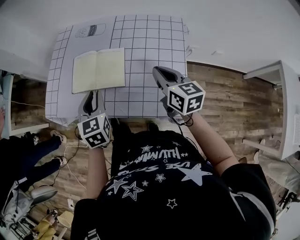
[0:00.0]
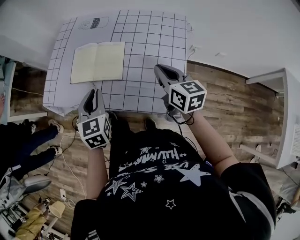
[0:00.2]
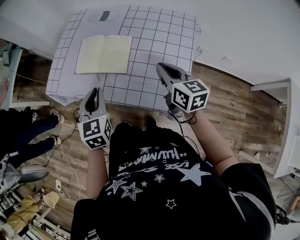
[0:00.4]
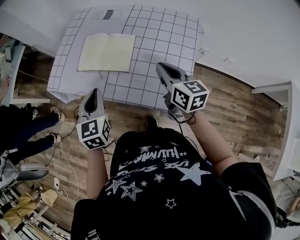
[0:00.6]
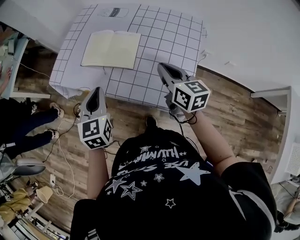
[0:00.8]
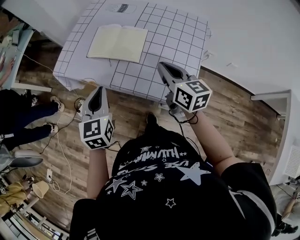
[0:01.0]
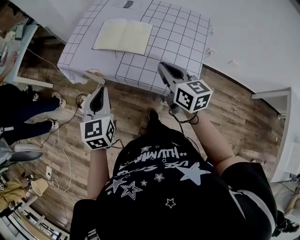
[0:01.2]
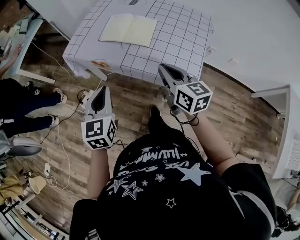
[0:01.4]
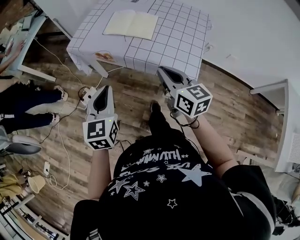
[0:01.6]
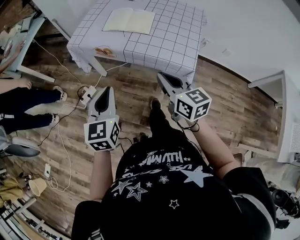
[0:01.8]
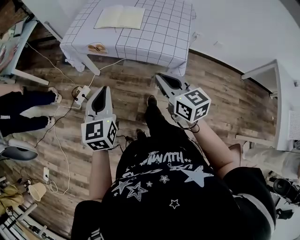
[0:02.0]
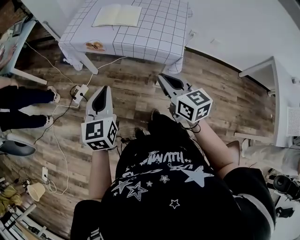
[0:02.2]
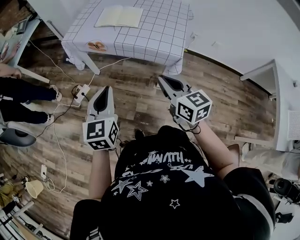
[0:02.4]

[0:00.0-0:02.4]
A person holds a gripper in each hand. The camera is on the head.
0.0 to 1.2 s: The right gripper goes roughly 15 cm to the left and backward. Meanwhile the left gripper heads backward and to the left, covering some 20 cm, and closes.
1.2 to 2.4 s: Both grippers move backward, about 25 cm.

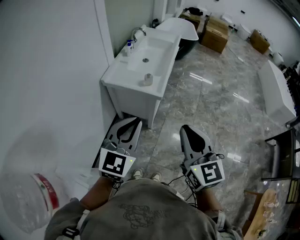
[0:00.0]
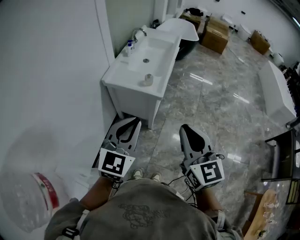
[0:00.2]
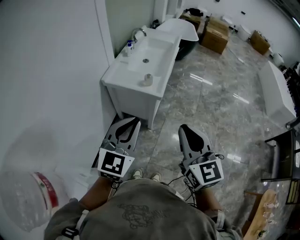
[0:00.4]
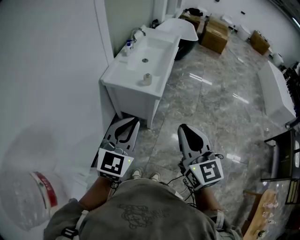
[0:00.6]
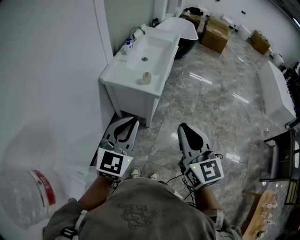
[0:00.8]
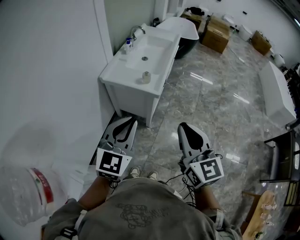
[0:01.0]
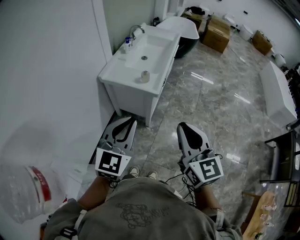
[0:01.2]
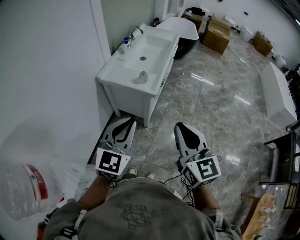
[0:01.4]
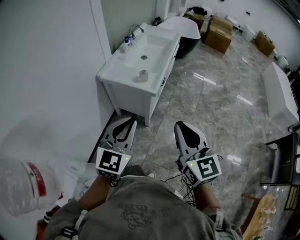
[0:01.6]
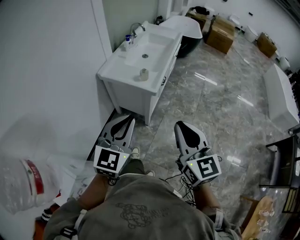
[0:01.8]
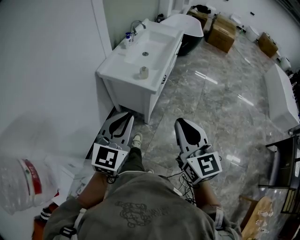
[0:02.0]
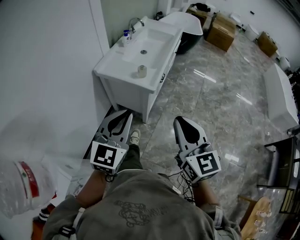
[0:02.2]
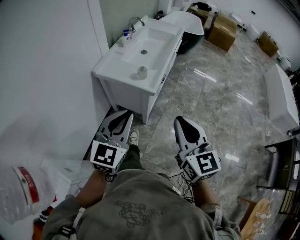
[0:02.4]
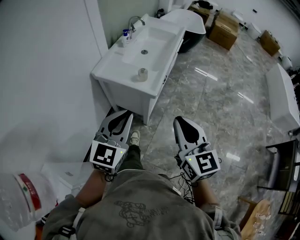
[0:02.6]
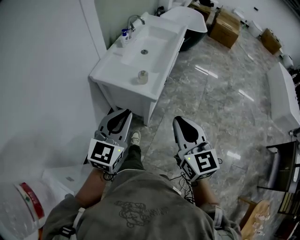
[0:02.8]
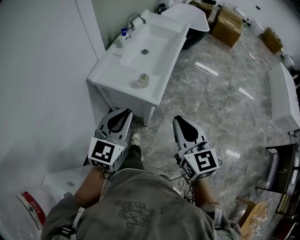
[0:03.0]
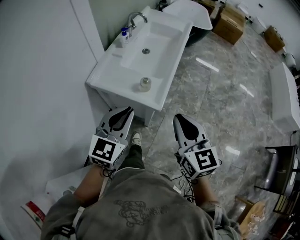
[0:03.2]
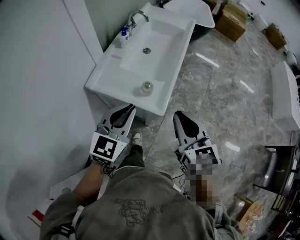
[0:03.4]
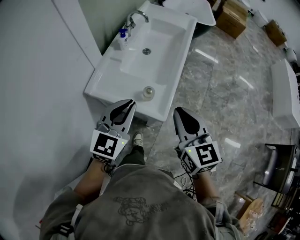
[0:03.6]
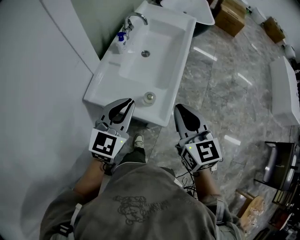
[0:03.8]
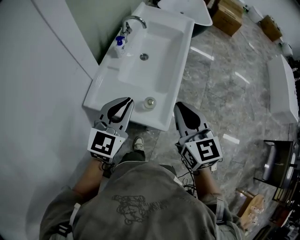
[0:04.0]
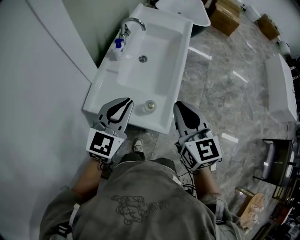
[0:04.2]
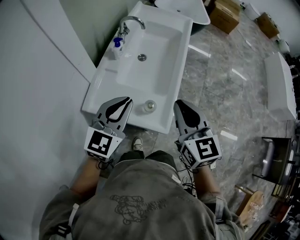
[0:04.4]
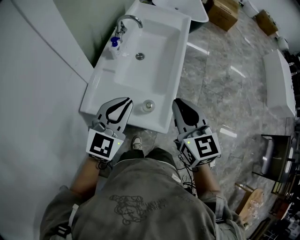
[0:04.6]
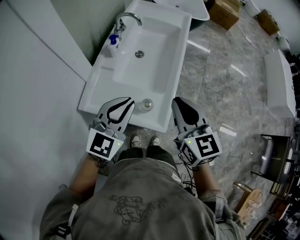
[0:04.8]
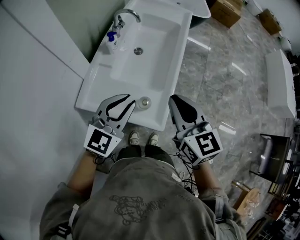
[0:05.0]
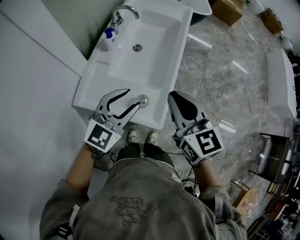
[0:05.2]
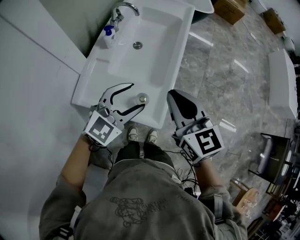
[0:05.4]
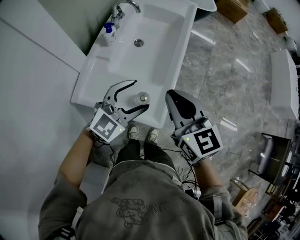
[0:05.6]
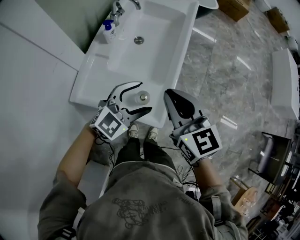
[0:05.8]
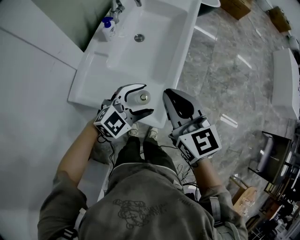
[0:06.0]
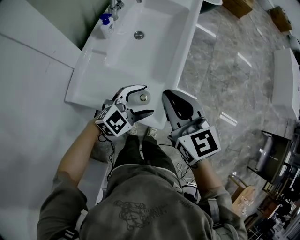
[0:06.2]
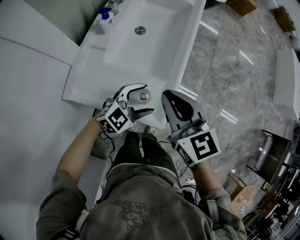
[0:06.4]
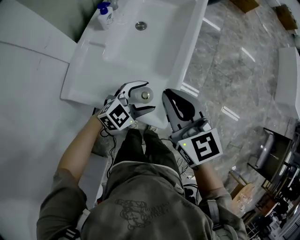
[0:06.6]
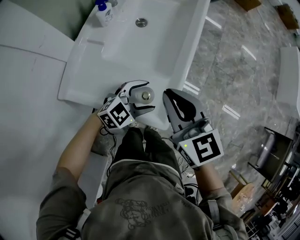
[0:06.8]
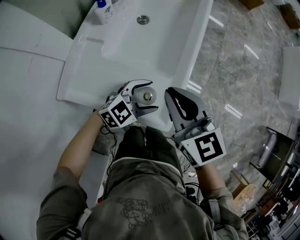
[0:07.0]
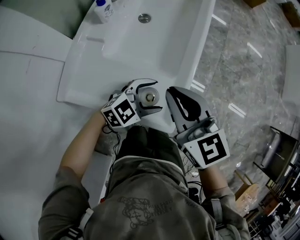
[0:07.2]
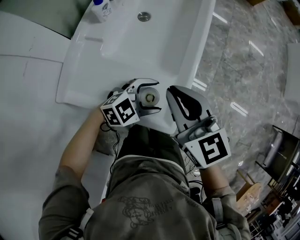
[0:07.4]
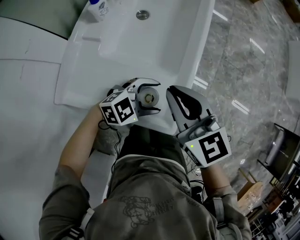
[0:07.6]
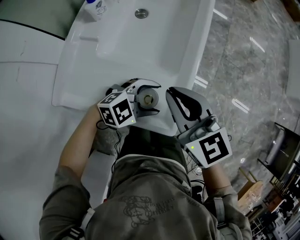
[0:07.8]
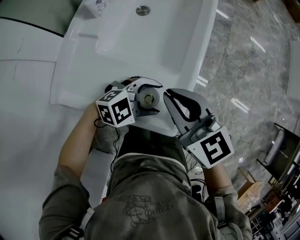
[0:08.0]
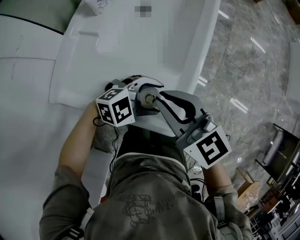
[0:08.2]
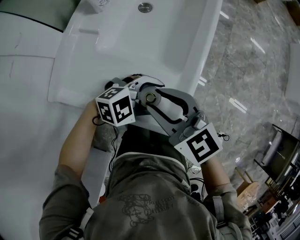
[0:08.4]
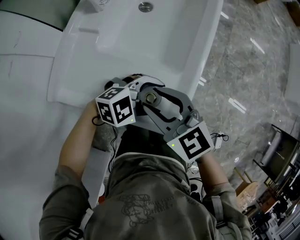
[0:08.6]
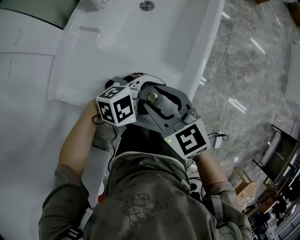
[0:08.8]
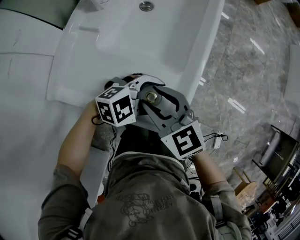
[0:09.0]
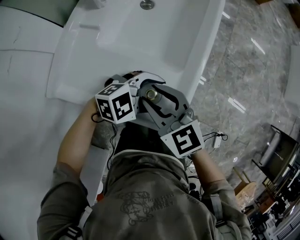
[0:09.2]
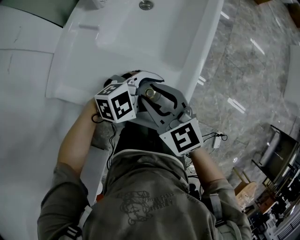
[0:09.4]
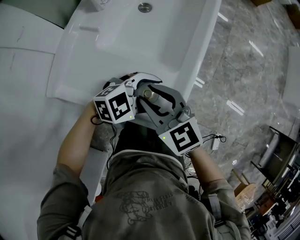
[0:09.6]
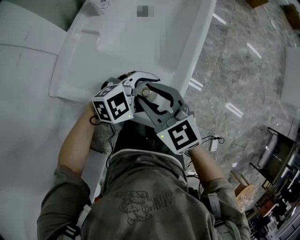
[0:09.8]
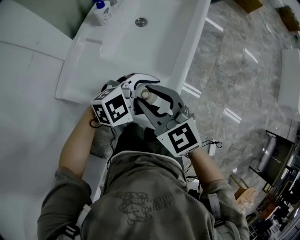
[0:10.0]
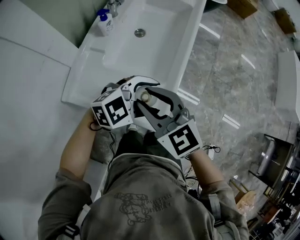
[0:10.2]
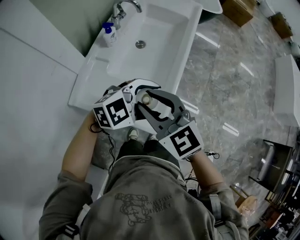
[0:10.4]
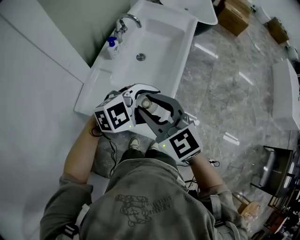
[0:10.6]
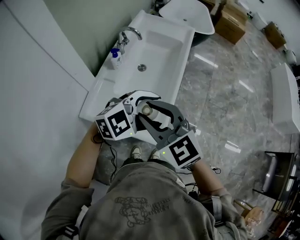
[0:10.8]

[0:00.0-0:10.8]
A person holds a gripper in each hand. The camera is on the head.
0.0 to 1.6 s: The right gripper shifts some 5 cm to the right. The left gripper ends up roughly 5 cm from where it was.
1.6 to 3.0 s: The two grippers go roughly 20 cm forward.
3.0 to 4.6 s: Both grippers move forward, some 25 cm.
4.6 to 6.2 s: The left gripper heads downward and to the right, covering roughly 20 cm, rotates some 30 degrees, and opens up. Meanwhile the right gripper goes about 5 cm downward.
6.2 to 7.8 s: The grippers both shift downward by approximately 10 cm. The left gripper swivels some 20 degrees.
7.8 to 9.2 s: The right gripper moves downward, approximately 10 cm, and opens its fingers.
9.2 to 10.8 s: The grippers both shift upward by approximately 30 cm.

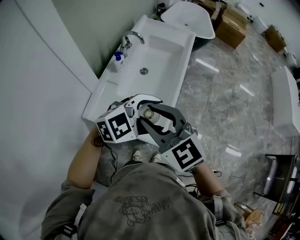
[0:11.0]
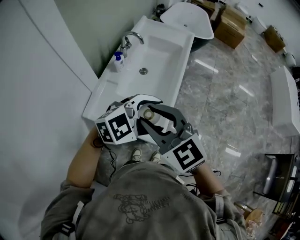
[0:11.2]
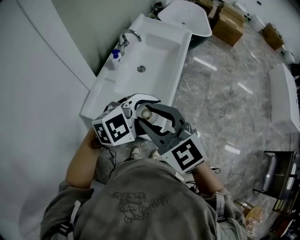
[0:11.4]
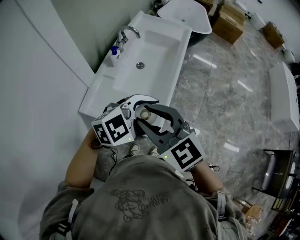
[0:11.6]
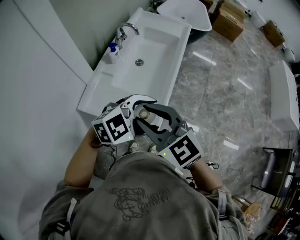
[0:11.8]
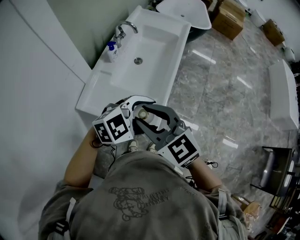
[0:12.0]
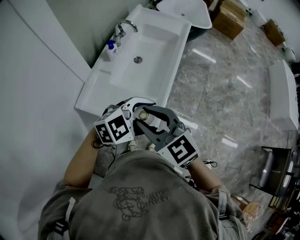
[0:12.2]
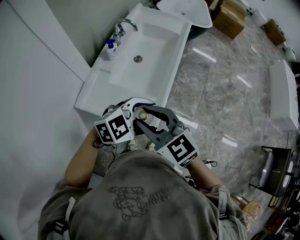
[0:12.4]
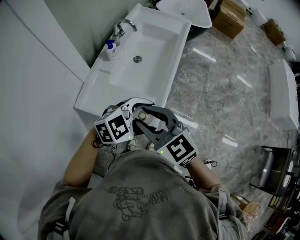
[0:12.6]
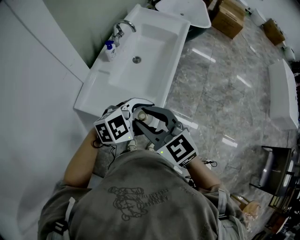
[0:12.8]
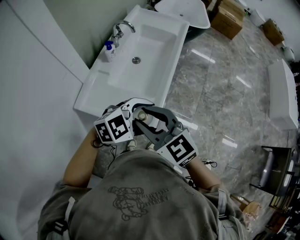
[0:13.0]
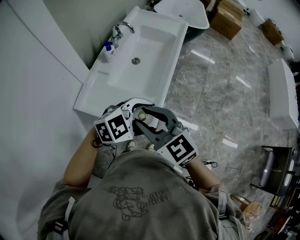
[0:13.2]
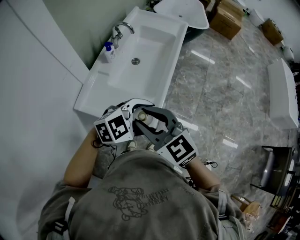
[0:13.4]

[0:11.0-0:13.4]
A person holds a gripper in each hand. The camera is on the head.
11.0 to 12.2 s: The right gripper changes place by some 5 cm; the left gripper ends up about 5 cm from where it was.
12.2 to 13.4 s: The grippers move only a little.

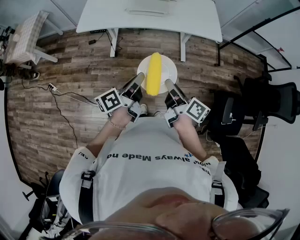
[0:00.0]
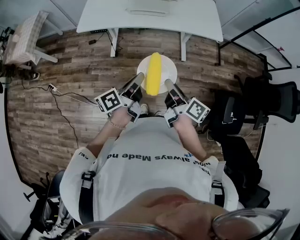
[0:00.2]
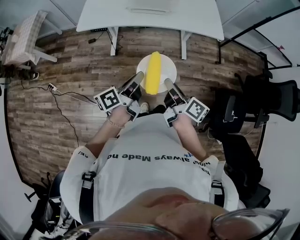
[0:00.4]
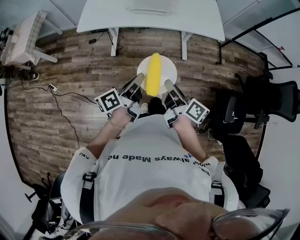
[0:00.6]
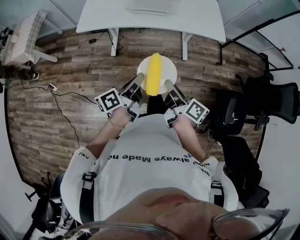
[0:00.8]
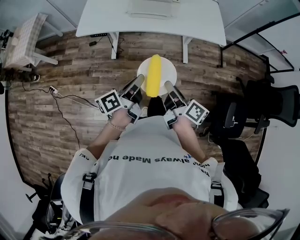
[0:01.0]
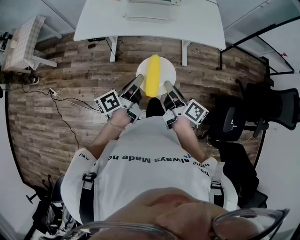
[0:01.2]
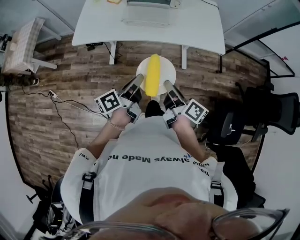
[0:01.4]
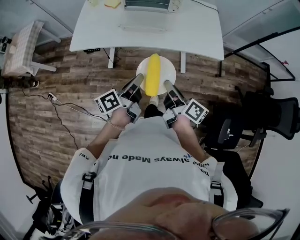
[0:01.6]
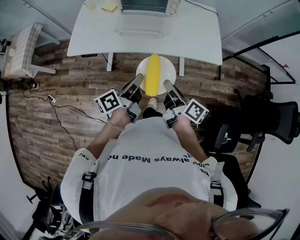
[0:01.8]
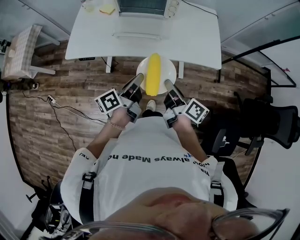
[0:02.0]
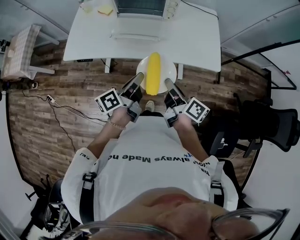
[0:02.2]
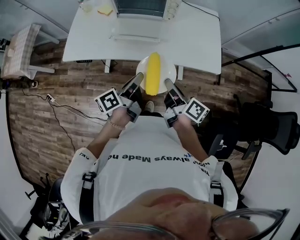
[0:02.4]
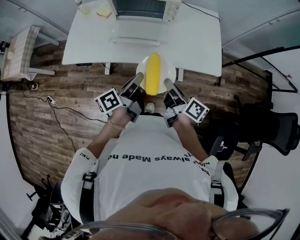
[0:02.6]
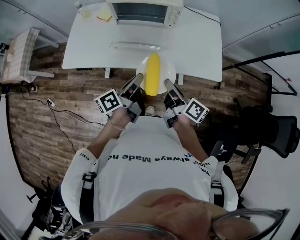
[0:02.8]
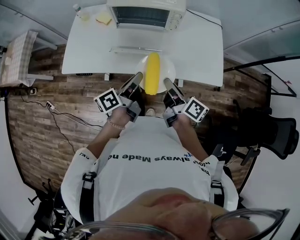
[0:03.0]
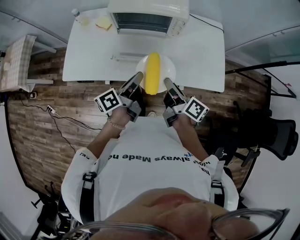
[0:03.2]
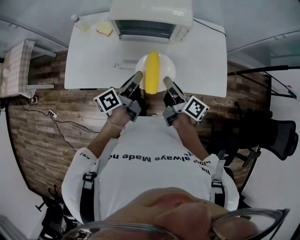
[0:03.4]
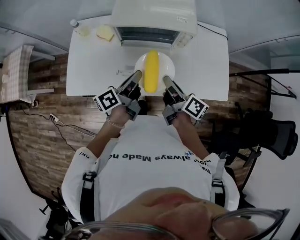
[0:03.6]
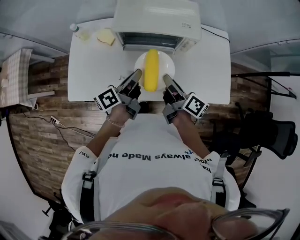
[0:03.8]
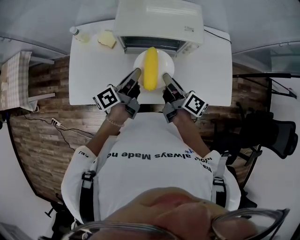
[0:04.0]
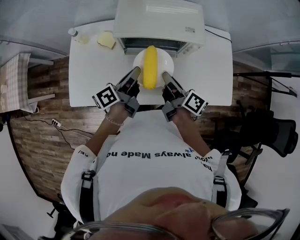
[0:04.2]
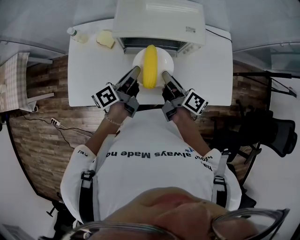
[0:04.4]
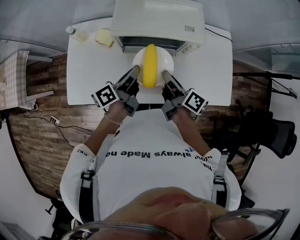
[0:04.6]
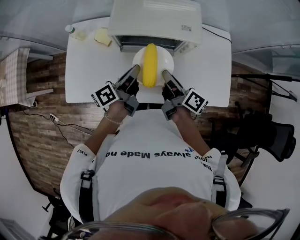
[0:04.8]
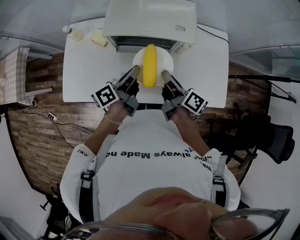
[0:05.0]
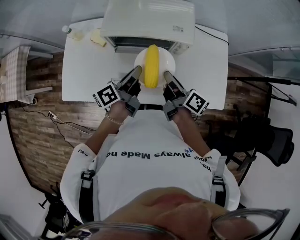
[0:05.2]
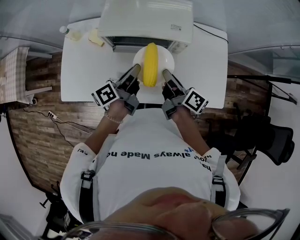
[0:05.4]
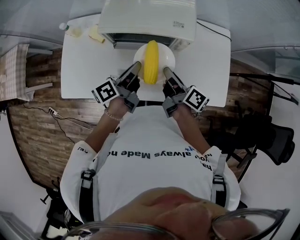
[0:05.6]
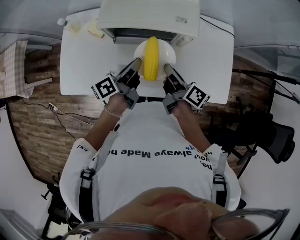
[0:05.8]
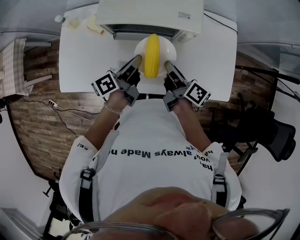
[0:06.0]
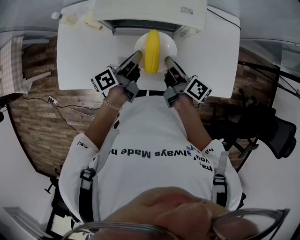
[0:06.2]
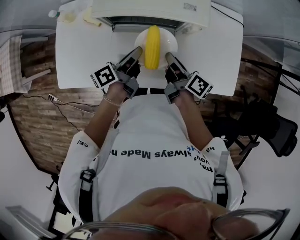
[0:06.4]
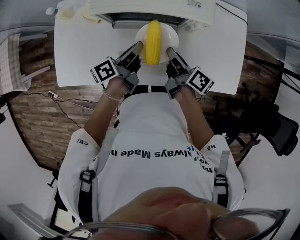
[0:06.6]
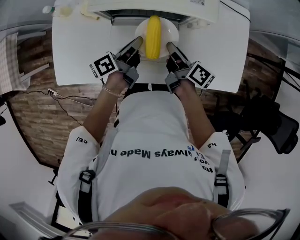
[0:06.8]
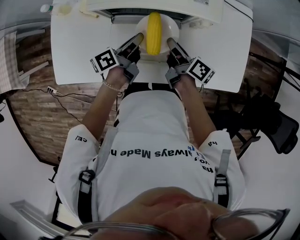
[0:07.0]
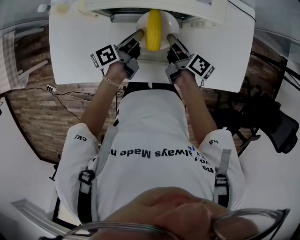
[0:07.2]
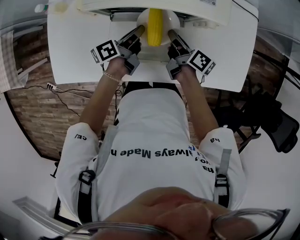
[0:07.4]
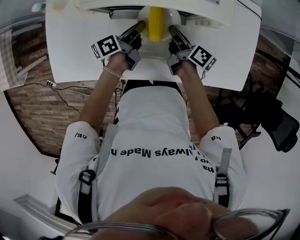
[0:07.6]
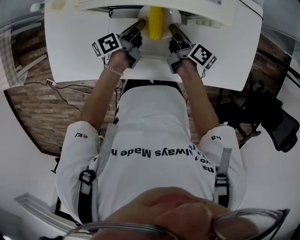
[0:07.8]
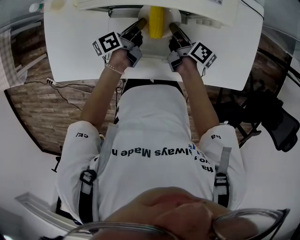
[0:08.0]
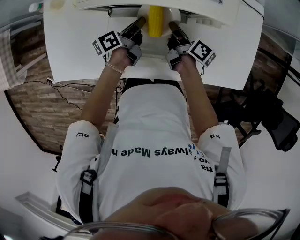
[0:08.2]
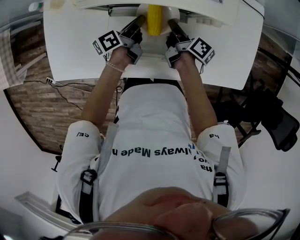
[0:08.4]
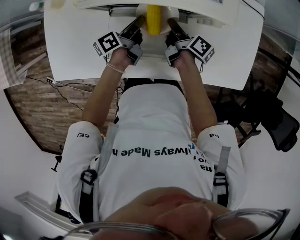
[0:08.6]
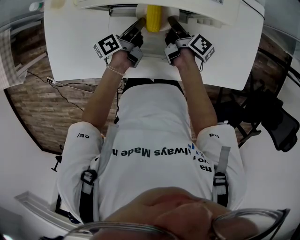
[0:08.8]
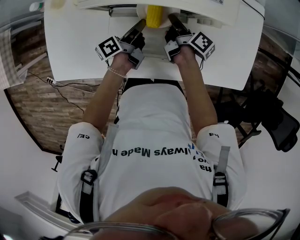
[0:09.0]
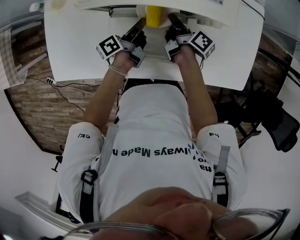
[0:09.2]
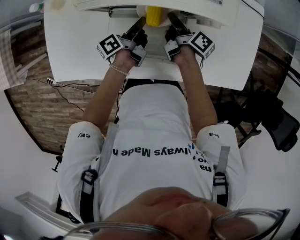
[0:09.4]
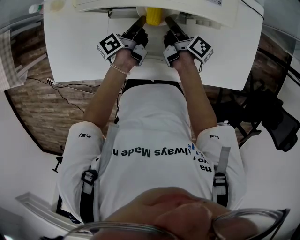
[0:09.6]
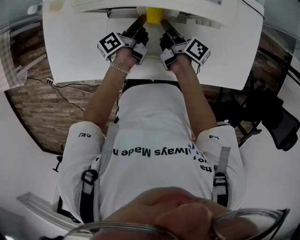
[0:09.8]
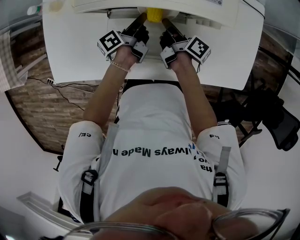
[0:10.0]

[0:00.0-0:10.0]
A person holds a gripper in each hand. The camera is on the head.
0.0 to 1.4 s: The two grippers go some 15 cm forward.
1.4 to 2.8 s: The two grippers go roughly 25 cm forward.
2.8 to 4.2 s: Both grippers travel together forward and to the left, approximately 30 cm.
4.2 to 5.8 s: The two grippers go some 5 cm to the right.
5.8 to 7.2 s: Both grippers travel together downward and forward, some 15 cm.
7.2 to 8.6 s: Both grippers move downward, some 5 cm.
8.6 to 10.0 s: The grippers stay close to where they were, moving slightly.
